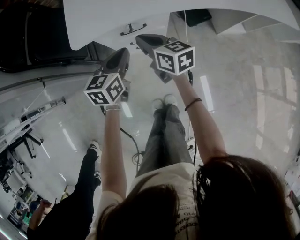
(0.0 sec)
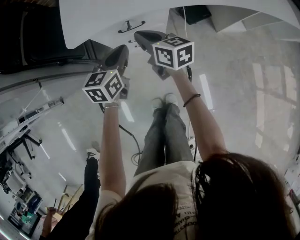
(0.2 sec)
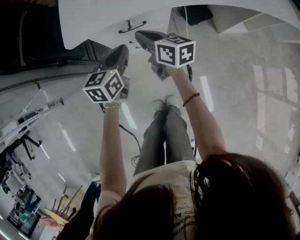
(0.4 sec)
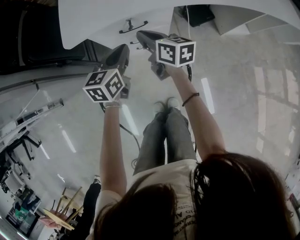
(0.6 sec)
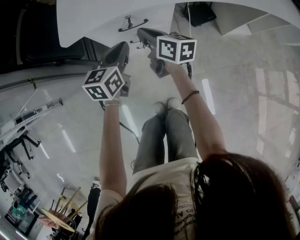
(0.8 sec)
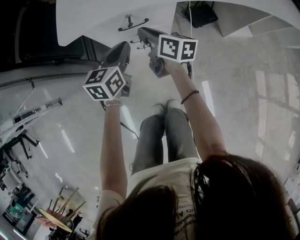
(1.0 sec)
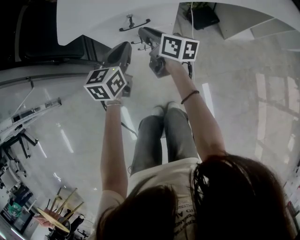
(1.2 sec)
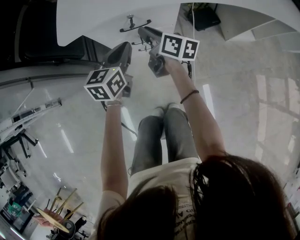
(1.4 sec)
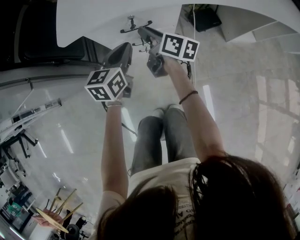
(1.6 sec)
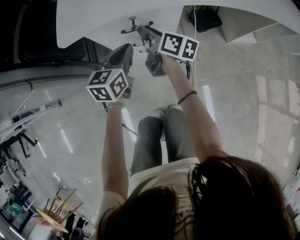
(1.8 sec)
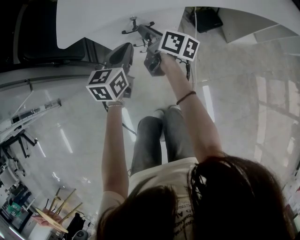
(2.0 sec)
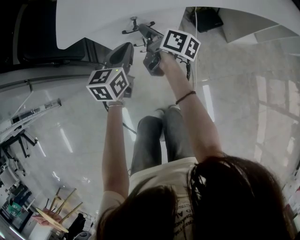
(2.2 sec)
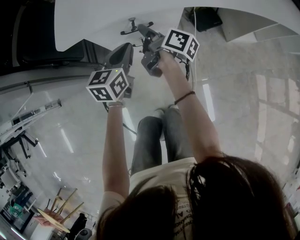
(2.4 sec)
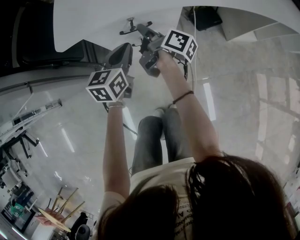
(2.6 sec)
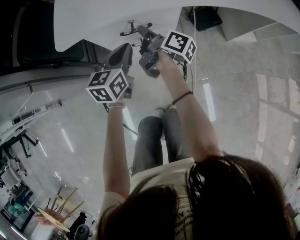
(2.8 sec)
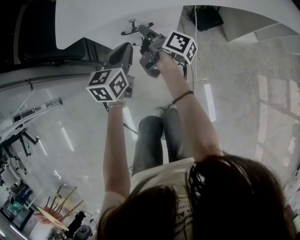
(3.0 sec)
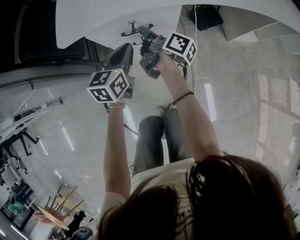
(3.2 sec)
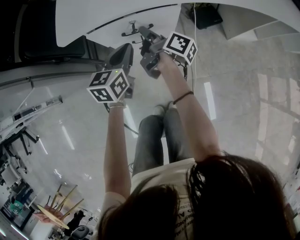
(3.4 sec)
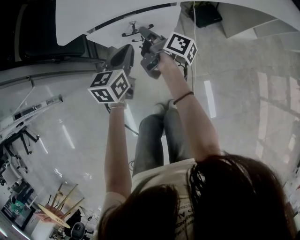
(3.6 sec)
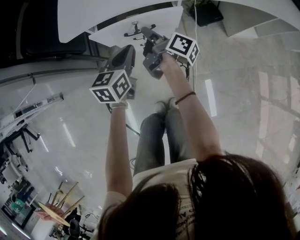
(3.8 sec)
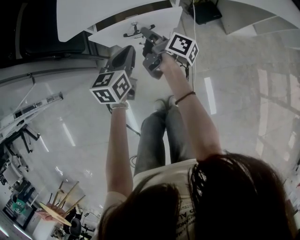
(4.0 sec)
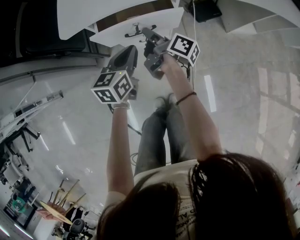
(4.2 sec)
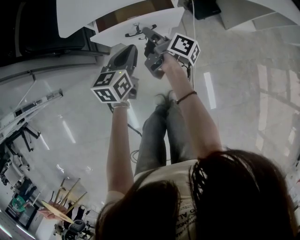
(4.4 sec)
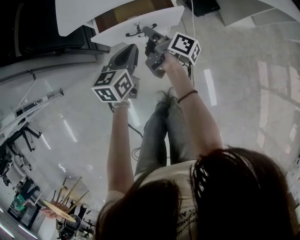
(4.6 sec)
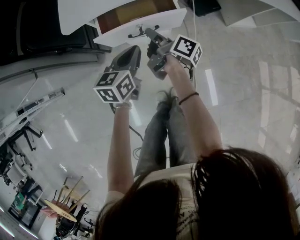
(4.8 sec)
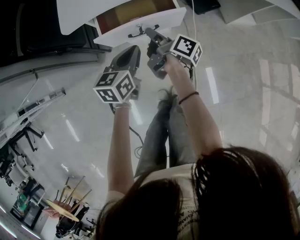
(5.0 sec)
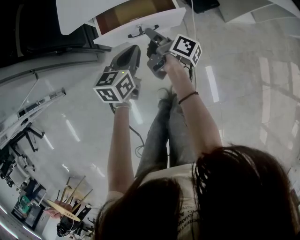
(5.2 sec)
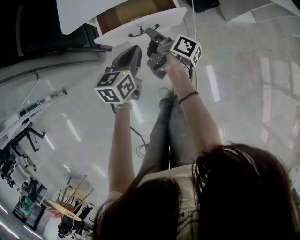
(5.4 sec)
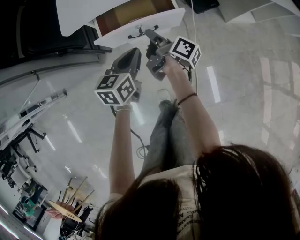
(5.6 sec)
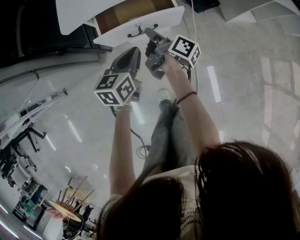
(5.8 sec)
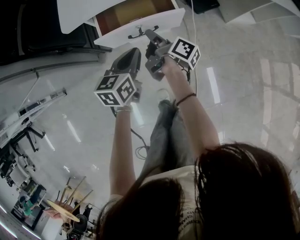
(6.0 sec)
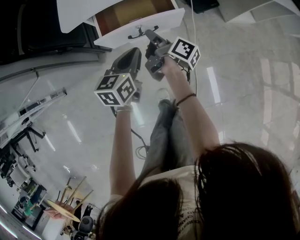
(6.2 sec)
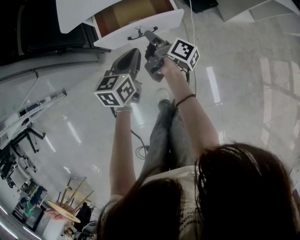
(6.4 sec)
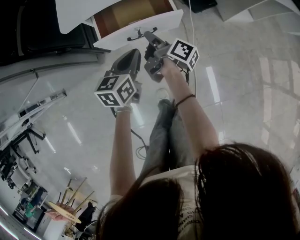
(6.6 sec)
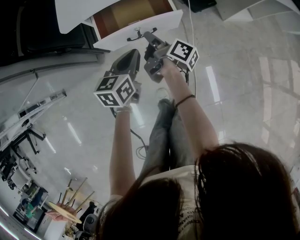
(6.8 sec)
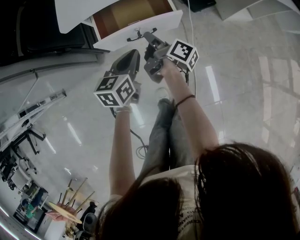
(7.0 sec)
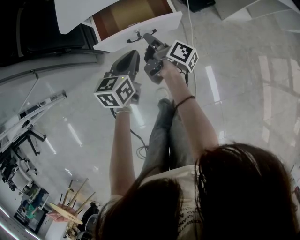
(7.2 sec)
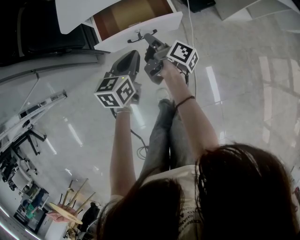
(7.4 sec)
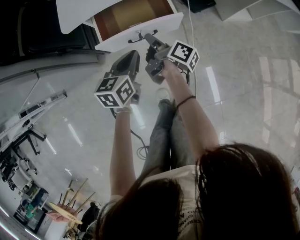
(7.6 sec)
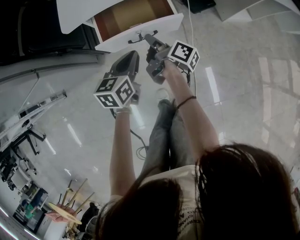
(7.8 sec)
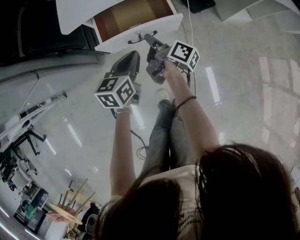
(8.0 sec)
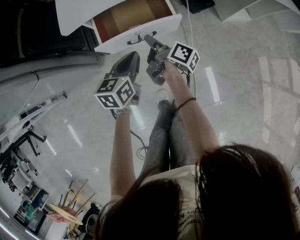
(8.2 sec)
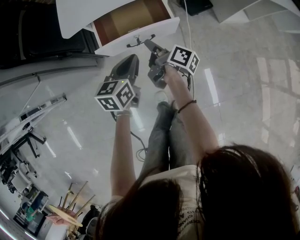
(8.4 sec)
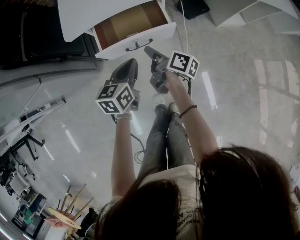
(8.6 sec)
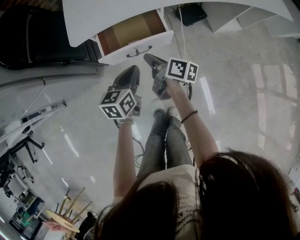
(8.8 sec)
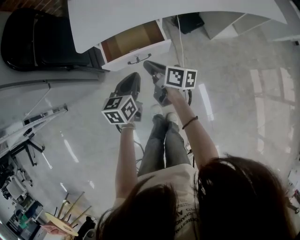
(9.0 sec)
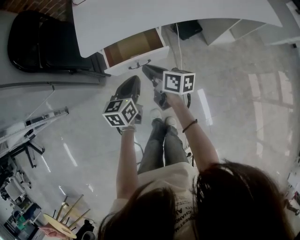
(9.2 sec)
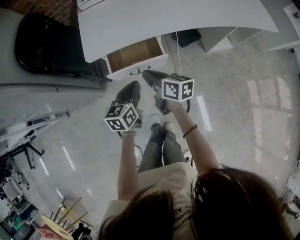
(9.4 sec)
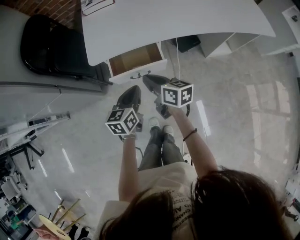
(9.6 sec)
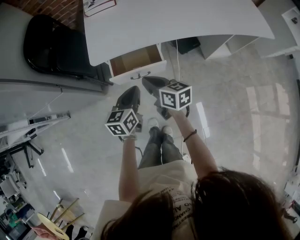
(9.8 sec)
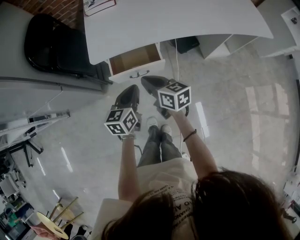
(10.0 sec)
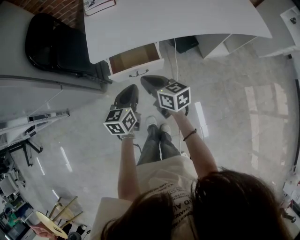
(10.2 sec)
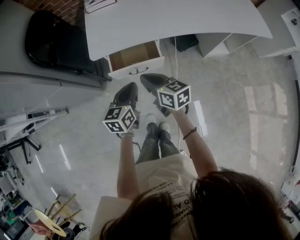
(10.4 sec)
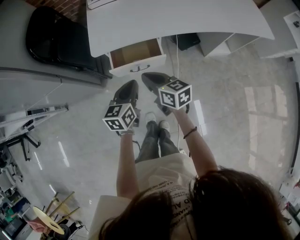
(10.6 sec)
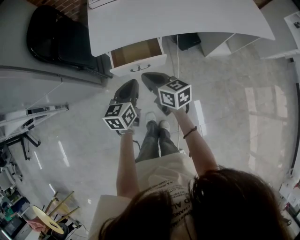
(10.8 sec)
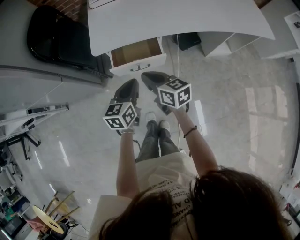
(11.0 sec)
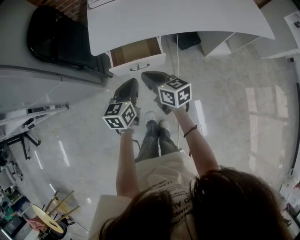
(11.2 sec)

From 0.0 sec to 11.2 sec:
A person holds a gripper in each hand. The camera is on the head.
From 0.0 sec to 1.6 sec: The right gripper is displaced downward and forward by roughly 10 cm, turns by about 30 degrees, and opens up, while the left gripper is displaced downward by about 10 cm.
From 1.6 sec to 3.2 sec: The right gripper turns by some 30 degrees.
From 3.2 sec to 4.8 sec: Both grippers move backward, approximately 10 cm.
From 4.8 sec to 8.0 sec: There are only small adjustments of the grippers.
From 8.0 sec to 9.6 sec: The two grippers go about 15 cm upward. The right gripper twists approximately 50 degrees counterclockwise, seen from behind.
From 9.6 sec to 11.2 sec: The right gripper moves some 5 cm.

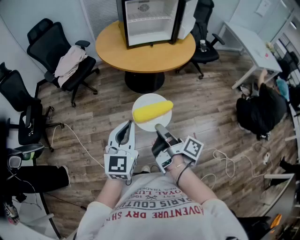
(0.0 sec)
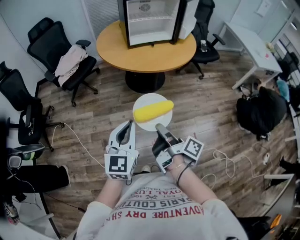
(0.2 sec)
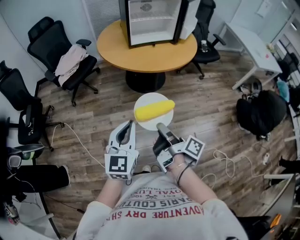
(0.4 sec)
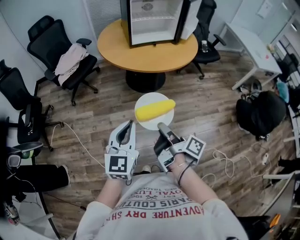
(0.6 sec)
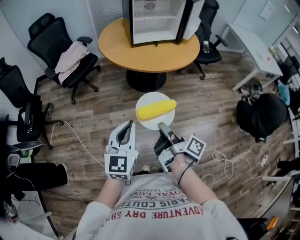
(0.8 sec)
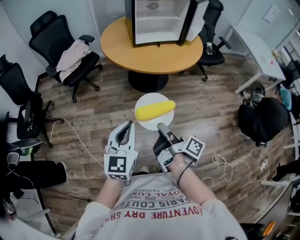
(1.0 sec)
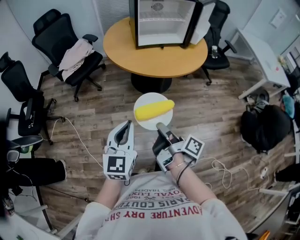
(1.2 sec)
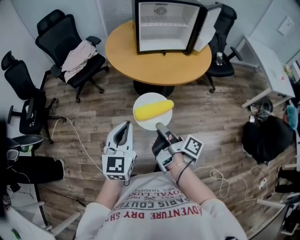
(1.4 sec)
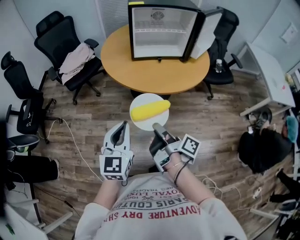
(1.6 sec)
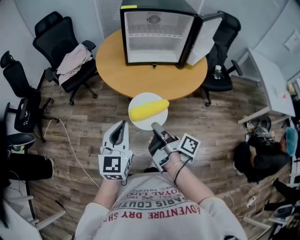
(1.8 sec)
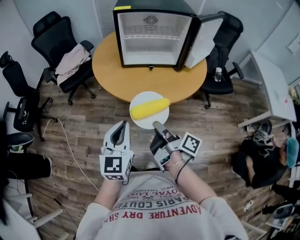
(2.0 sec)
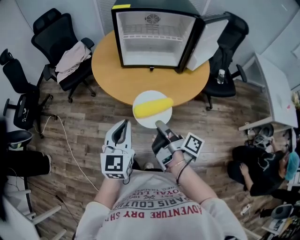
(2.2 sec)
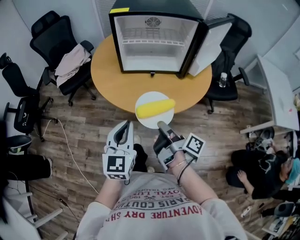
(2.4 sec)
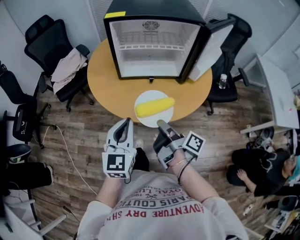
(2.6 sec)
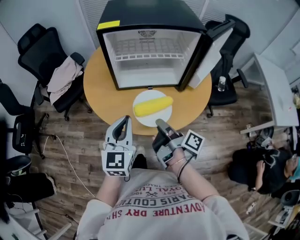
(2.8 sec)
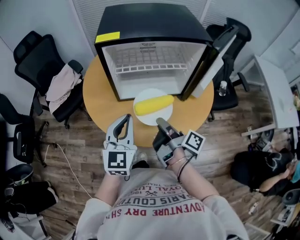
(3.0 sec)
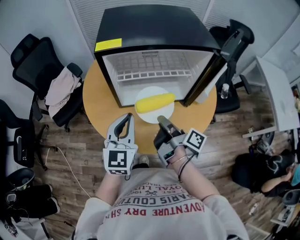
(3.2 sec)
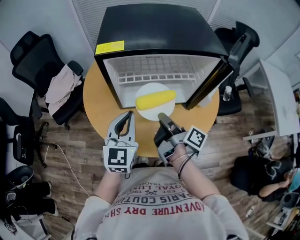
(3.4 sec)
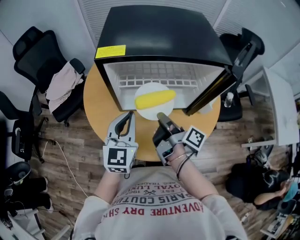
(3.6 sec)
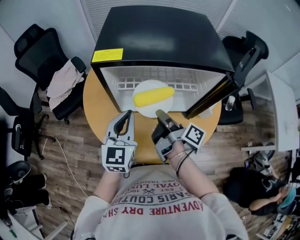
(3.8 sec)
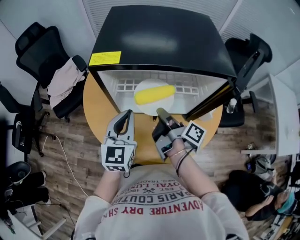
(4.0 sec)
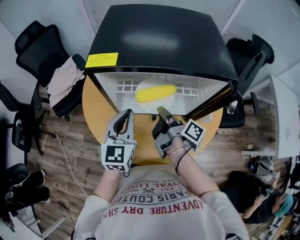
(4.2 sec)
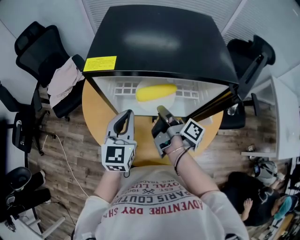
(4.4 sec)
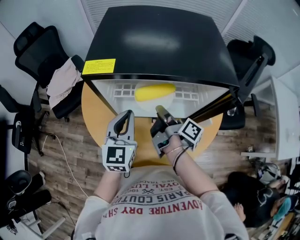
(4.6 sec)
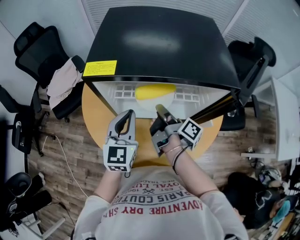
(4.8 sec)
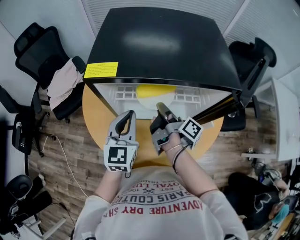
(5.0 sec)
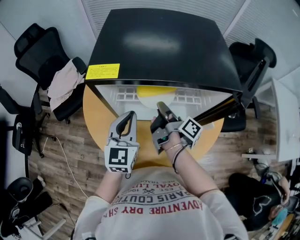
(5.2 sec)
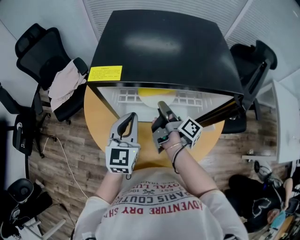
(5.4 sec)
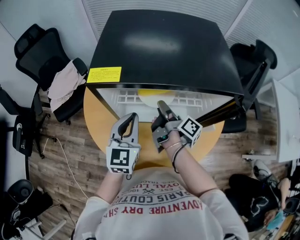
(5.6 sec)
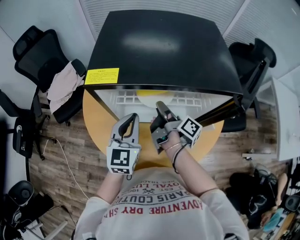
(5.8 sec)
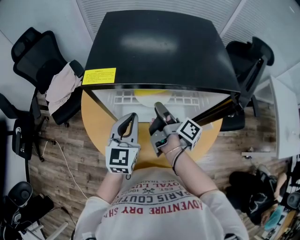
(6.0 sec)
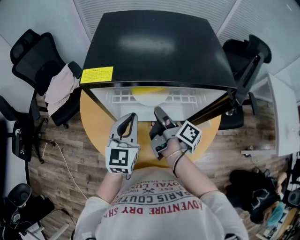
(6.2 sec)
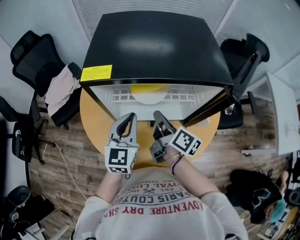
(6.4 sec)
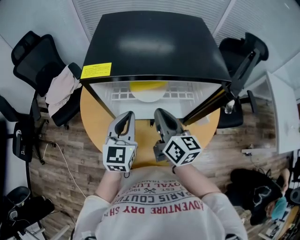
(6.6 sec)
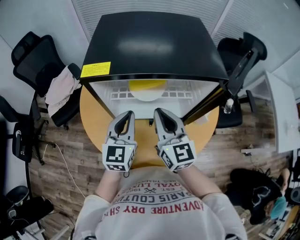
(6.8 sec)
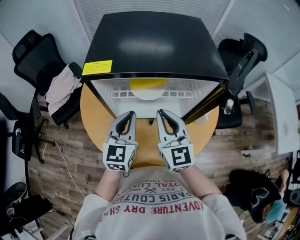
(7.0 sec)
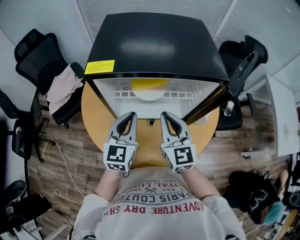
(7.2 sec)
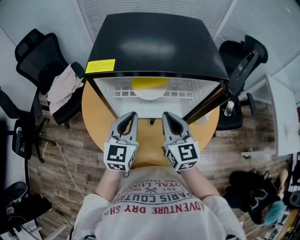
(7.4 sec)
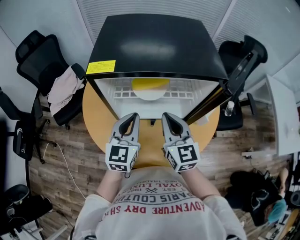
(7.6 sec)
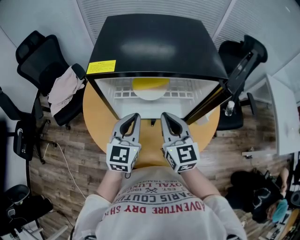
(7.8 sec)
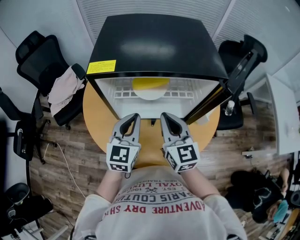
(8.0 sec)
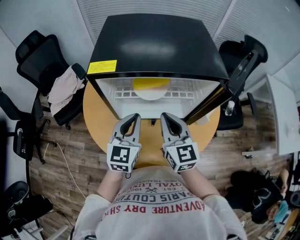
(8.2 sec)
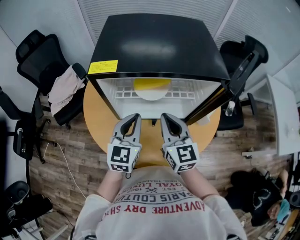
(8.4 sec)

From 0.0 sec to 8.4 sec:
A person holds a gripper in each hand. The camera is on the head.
From 0.0 sec to 1.4 sec: The left gripper moves some 10 cm.
From 1.4 sec to 2.8 sec: The left gripper ends up about 35 cm from where it was.
From 2.8 sec to 4.2 sec: The left gripper shifts by some 20 cm.

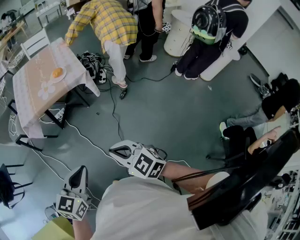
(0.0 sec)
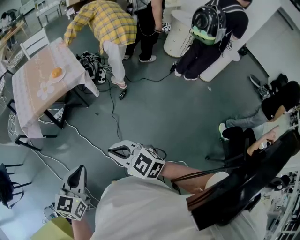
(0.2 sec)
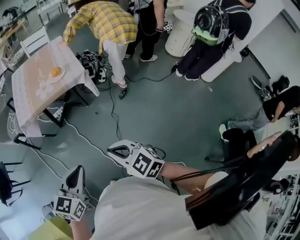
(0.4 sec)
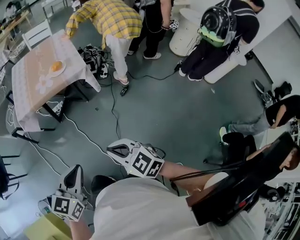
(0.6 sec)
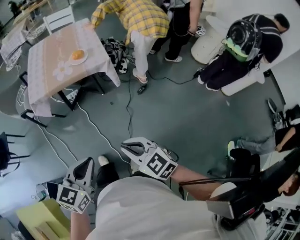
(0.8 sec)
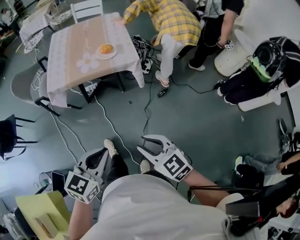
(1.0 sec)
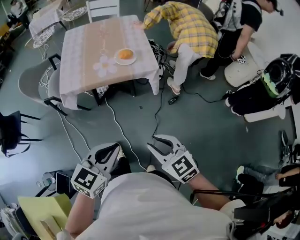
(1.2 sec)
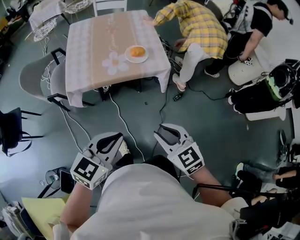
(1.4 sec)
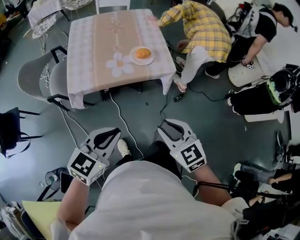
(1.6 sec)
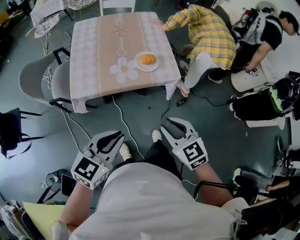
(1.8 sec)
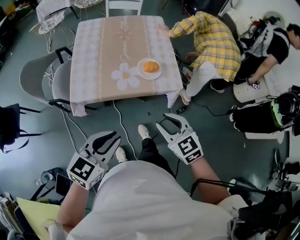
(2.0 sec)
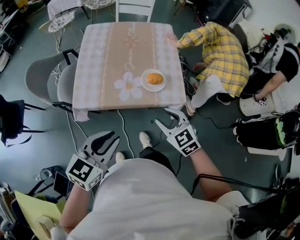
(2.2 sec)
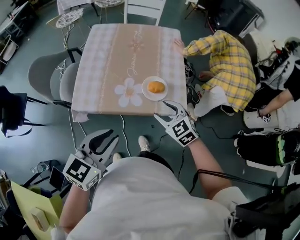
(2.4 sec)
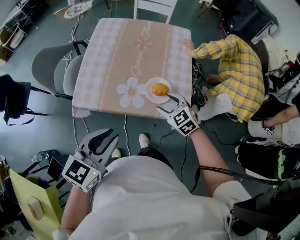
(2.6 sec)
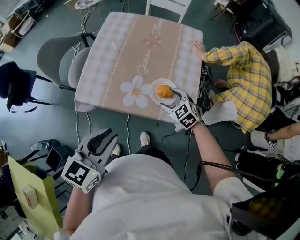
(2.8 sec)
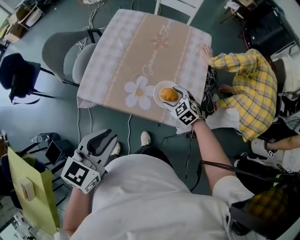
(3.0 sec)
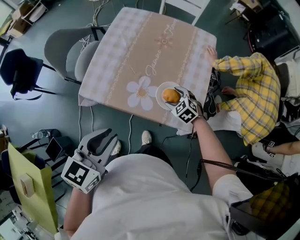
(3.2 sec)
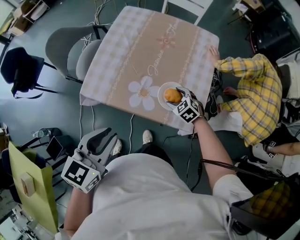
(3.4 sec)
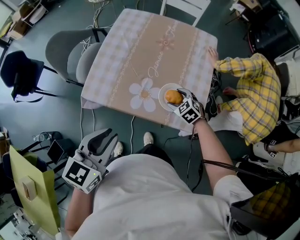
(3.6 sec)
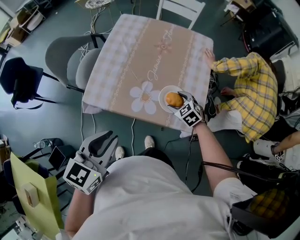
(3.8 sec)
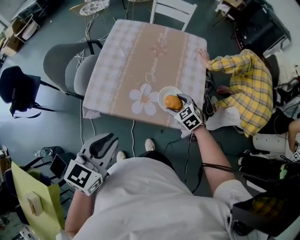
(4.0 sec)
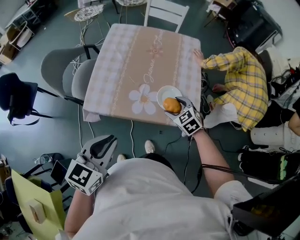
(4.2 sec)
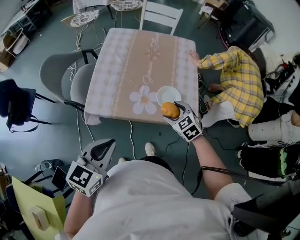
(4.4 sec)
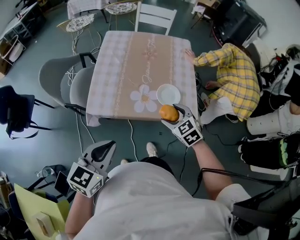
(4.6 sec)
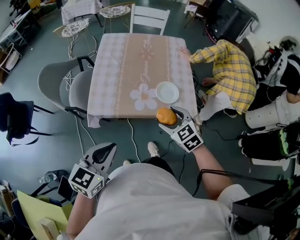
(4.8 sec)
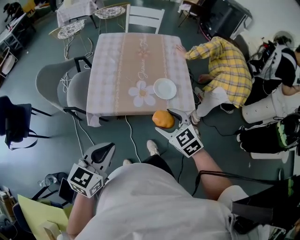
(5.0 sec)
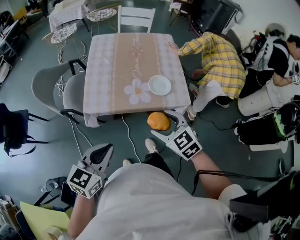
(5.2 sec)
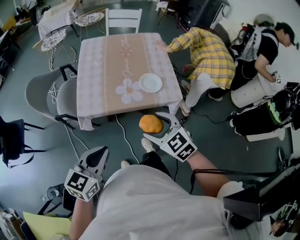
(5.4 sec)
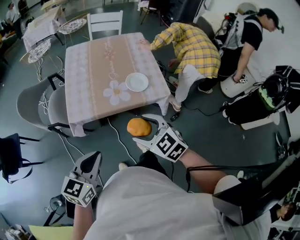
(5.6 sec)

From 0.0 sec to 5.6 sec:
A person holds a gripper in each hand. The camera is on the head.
From 0.0 sec to 1.4 sec: Both grippers move forward and to the left, about 25 cm.
From 1.4 sec to 2.8 sec: The left gripper changes place by approximately 25 cm, and rotates roughly 30 degrees. The right gripper moves approximately 50 cm, rotates about 40 degrees, and opens.
From 2.8 sec to 4.2 sec: The right gripper travels downward and back again, approximately 5 cm each way, while the left gripper goes about 5 cm to the left.
From 4.2 sec to 5.6 sec: The right gripper goes roughly 30 cm backward, upward and to the left; the left gripper goes approximately 15 cm backward and to the left.
